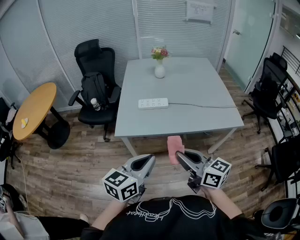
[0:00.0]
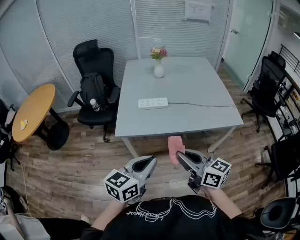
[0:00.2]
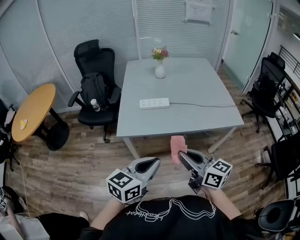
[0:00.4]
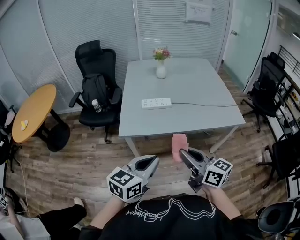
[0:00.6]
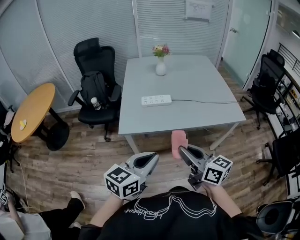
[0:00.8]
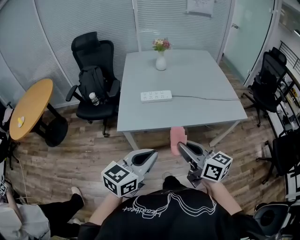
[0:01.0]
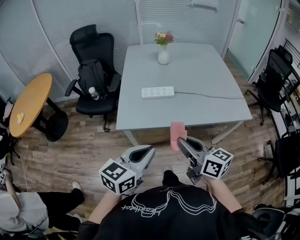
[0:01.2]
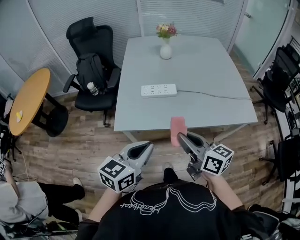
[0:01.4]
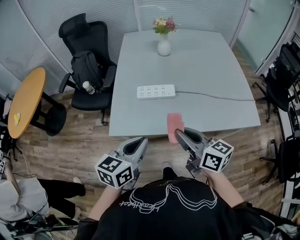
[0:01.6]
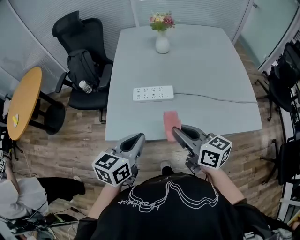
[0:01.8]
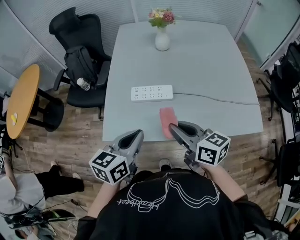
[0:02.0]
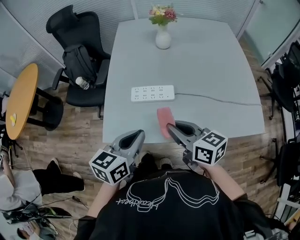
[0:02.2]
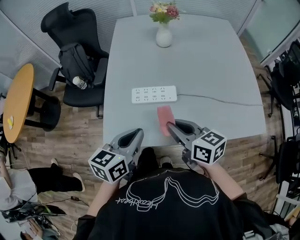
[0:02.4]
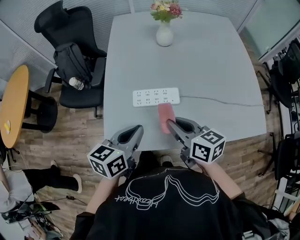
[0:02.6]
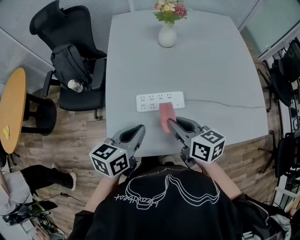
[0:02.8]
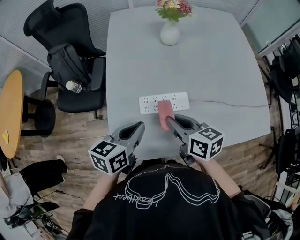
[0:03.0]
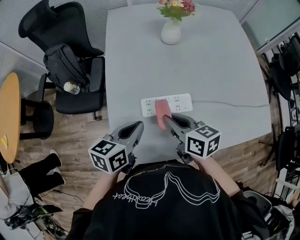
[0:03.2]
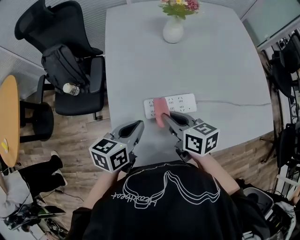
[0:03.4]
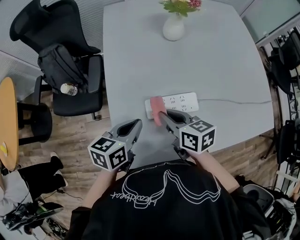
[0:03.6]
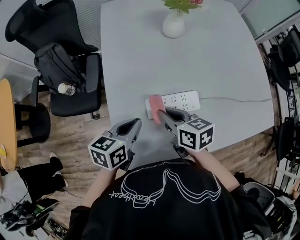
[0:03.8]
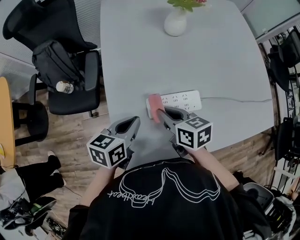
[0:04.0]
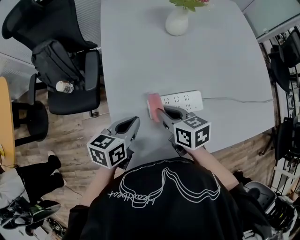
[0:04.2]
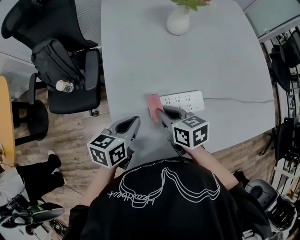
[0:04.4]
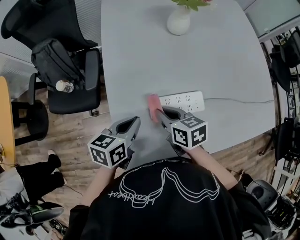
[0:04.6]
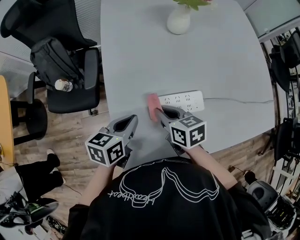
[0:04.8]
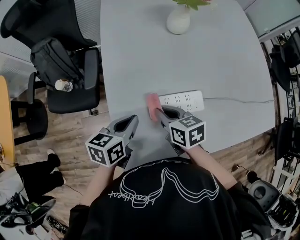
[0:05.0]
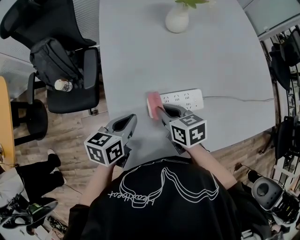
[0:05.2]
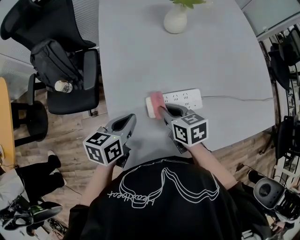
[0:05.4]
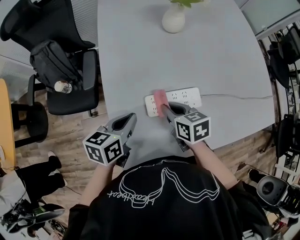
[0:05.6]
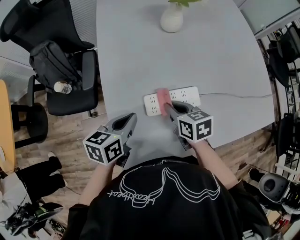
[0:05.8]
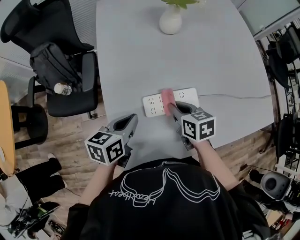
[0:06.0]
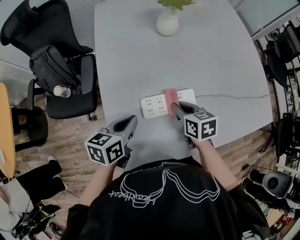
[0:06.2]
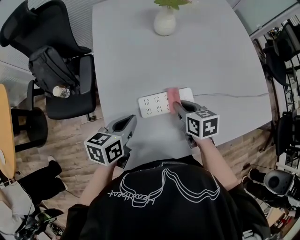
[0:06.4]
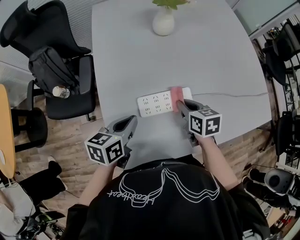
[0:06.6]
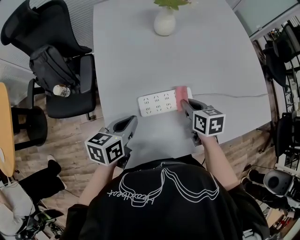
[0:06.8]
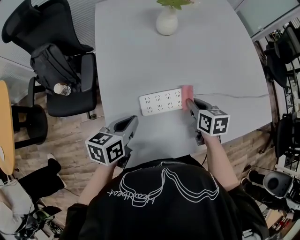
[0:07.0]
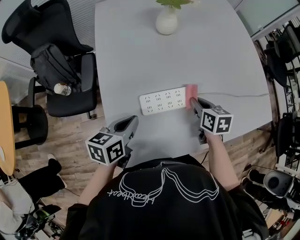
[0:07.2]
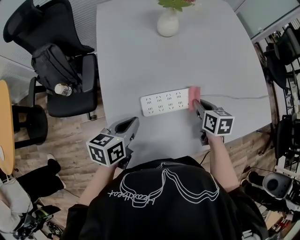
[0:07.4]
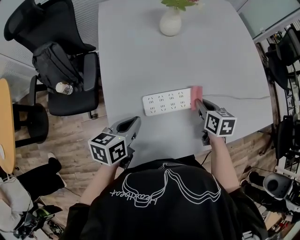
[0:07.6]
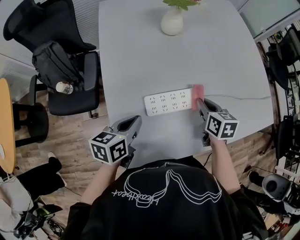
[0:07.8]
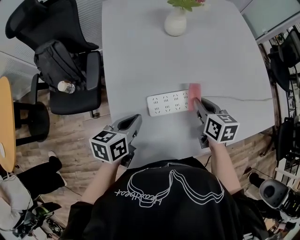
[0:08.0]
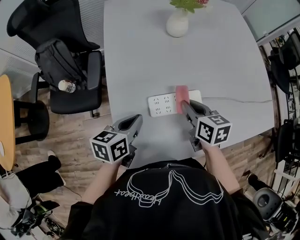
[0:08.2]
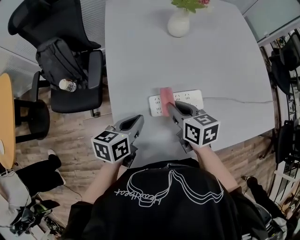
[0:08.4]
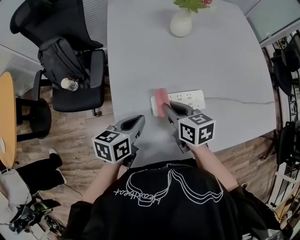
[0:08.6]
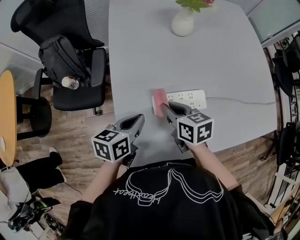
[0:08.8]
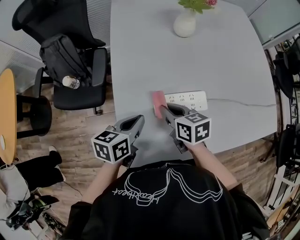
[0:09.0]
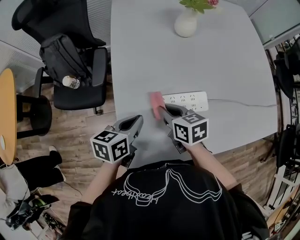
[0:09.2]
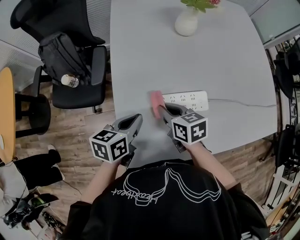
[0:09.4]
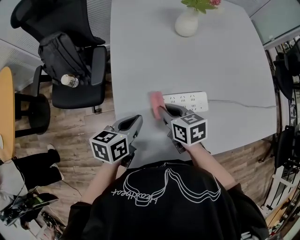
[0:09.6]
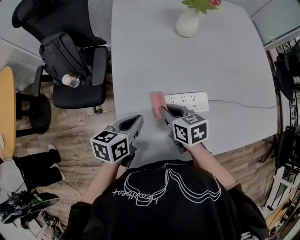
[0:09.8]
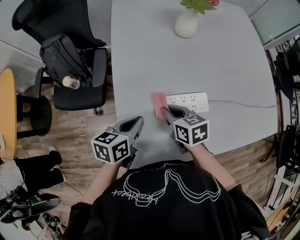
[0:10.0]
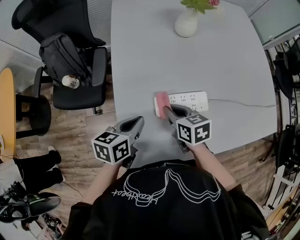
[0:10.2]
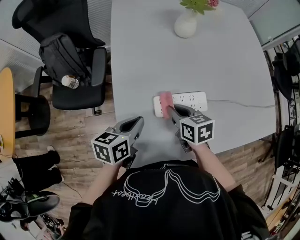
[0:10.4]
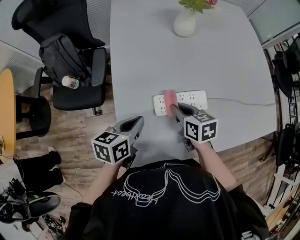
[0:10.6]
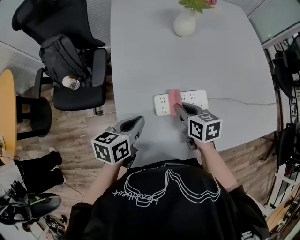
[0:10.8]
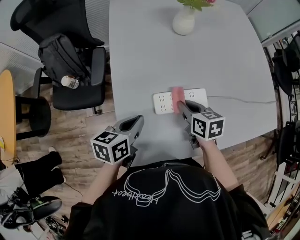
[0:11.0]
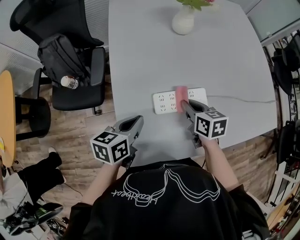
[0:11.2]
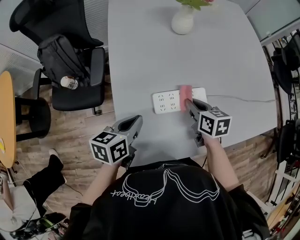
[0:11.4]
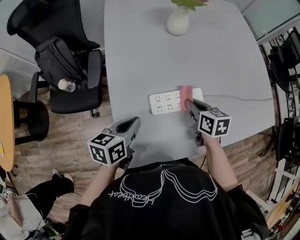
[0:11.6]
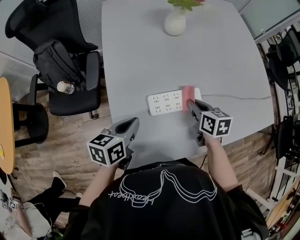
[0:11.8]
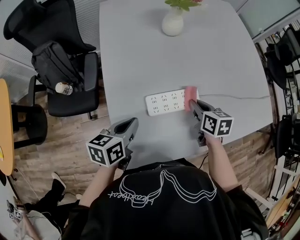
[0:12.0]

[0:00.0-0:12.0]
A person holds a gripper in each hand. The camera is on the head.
0:00.0 to 0:01.6: The right gripper moves forward, some 20 cm; the left gripper moves forward and downward, roughly 20 cm.
0:01.6 to 0:03.0: The two grippers go roughly 25 cm forward.
0:03.0 to 0:04.4: Both grippers move downward, to the left and forward, approximately 15 cm.
0:04.4 to 0:06.0: The right gripper travels to the right by some 10 cm.
0:06.0 to 0:07.6: The right gripper goes approximately 10 cm to the right.
0:07.6 to 0:09.0: The right gripper heads to the left, covering roughly 20 cm, and turns by approximately 20 degrees.
0:09.0 to 0:10.4: The grippers stay close to where they were, moving slightly.
0:10.4 to 0:12.0: The right gripper heads to the right, covering some 15 cm.

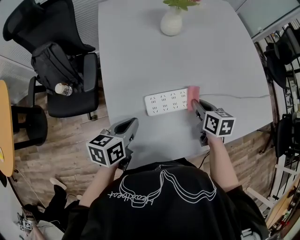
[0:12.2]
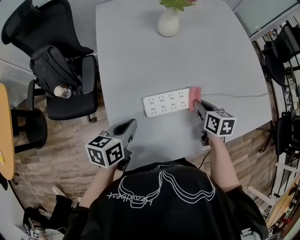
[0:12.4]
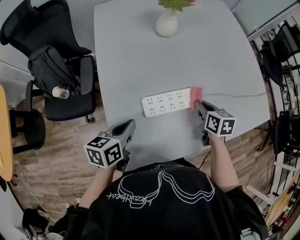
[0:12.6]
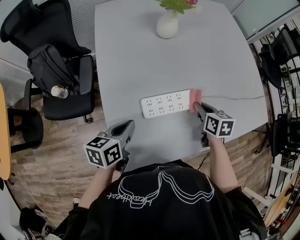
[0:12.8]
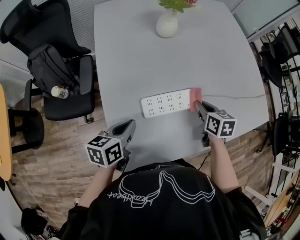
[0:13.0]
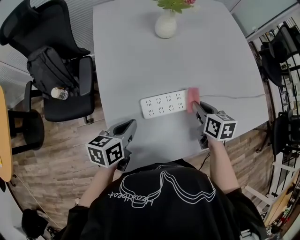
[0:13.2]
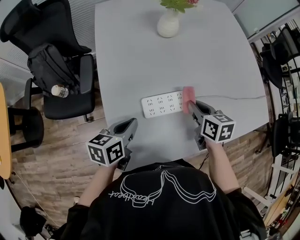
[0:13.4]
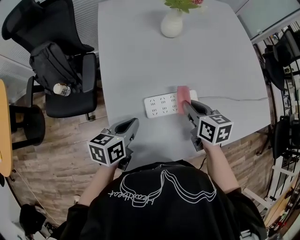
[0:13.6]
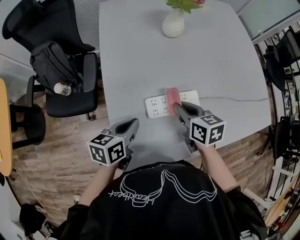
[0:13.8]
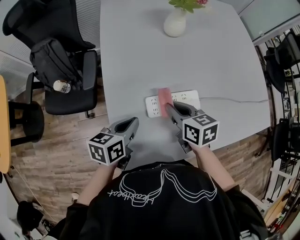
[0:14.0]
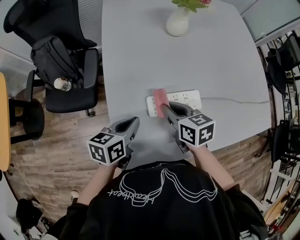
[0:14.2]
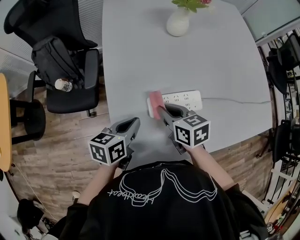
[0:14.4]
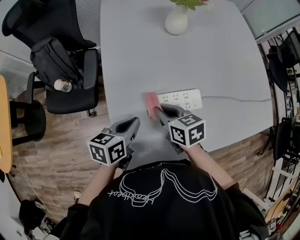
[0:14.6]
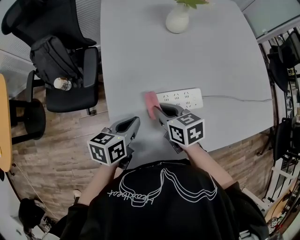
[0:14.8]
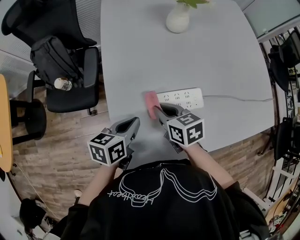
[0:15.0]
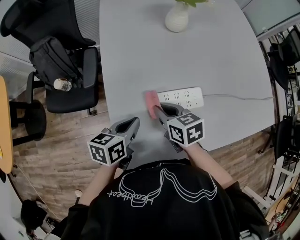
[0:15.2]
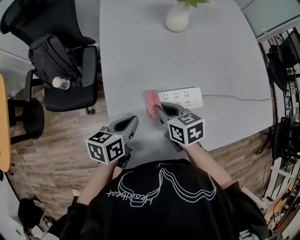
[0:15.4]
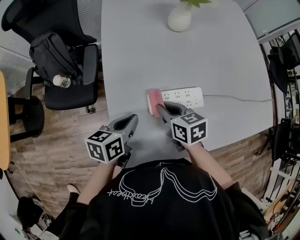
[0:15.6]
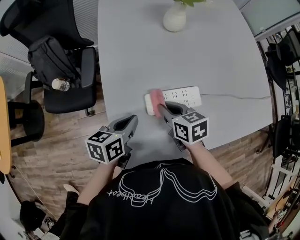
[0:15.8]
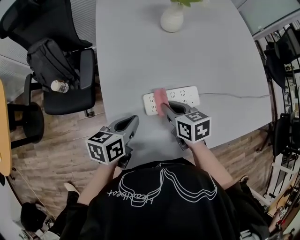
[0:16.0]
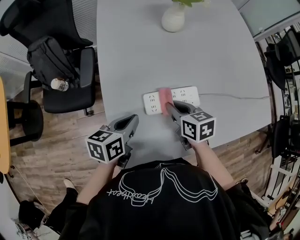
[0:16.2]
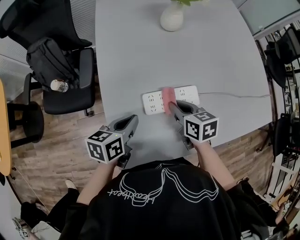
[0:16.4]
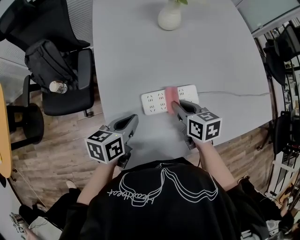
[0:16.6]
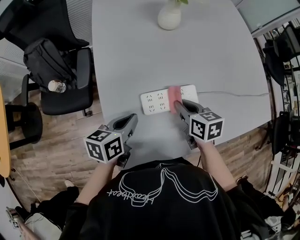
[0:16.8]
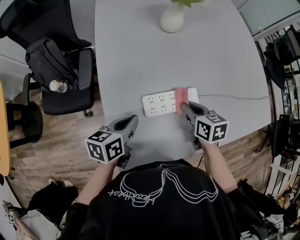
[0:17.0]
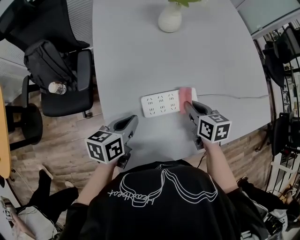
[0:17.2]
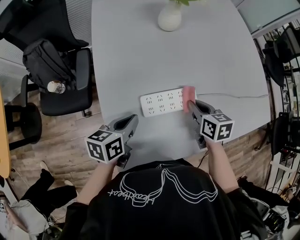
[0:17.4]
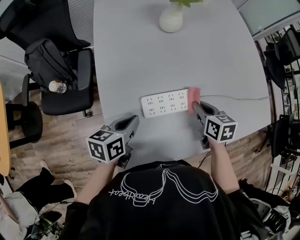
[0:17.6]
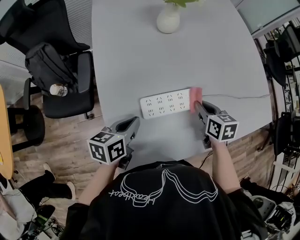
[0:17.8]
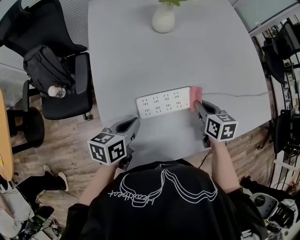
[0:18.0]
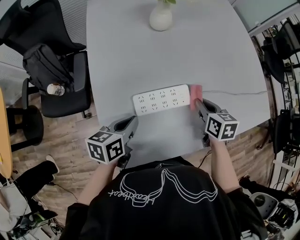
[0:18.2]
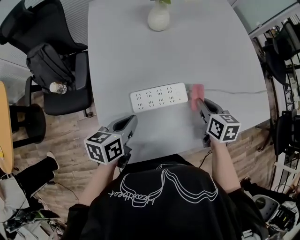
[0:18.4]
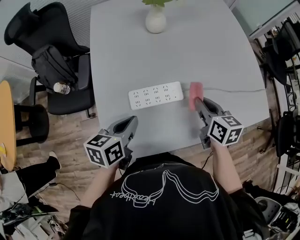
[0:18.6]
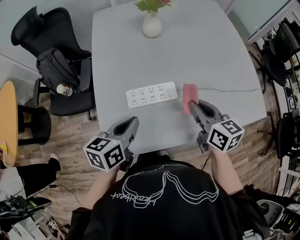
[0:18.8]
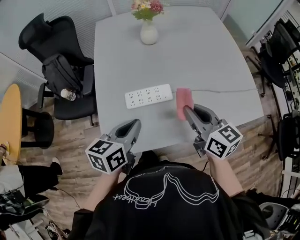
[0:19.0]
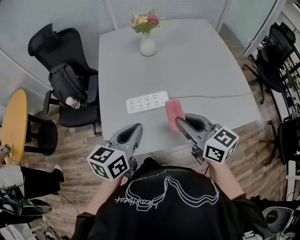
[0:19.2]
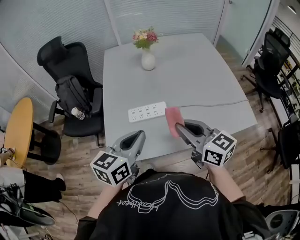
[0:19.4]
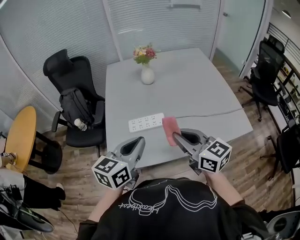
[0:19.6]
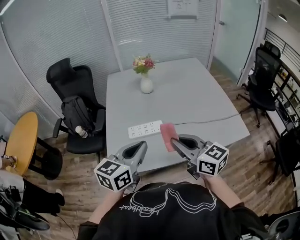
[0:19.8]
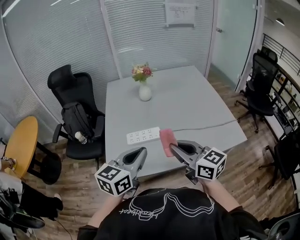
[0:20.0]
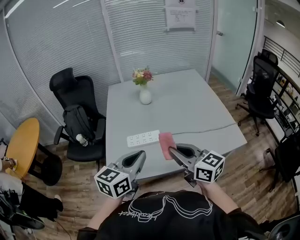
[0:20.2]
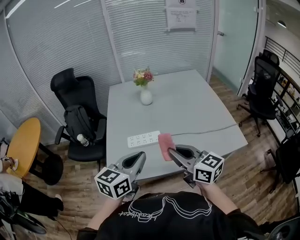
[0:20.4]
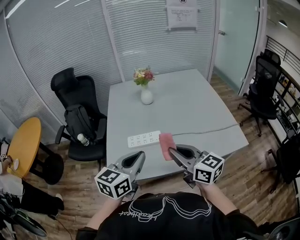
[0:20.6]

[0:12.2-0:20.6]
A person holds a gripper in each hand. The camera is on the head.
0:12.2 to 0:13.6: The right gripper travels to the left by roughly 5 cm.
0:13.6 to 0:15.0: The right gripper heads to the left, covering some 10 cm.
0:15.0 to 0:16.4: The right gripper moves to the right, approximately 10 cm.
0:16.4 to 0:17.8: The right gripper travels to the right by some 10 cm.
0:17.8 to 0:19.2: The left gripper is displaced upward, to the right and backward by some 25 cm, and rotates approximately 20 degrees. Meanwhile the right gripper shifts about 25 cm upward and backward, and tilts its fingers about 40 degrees upward.
0:19.2 to 0:20.6: The two grippers go about 10 cm backward and upward.

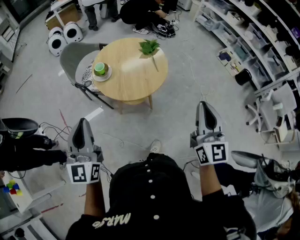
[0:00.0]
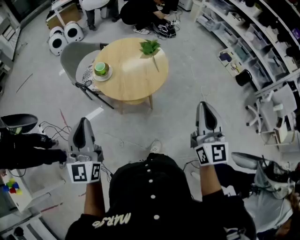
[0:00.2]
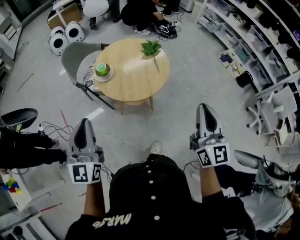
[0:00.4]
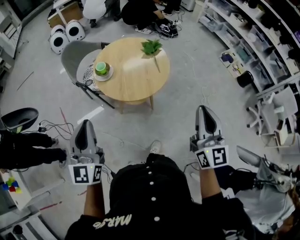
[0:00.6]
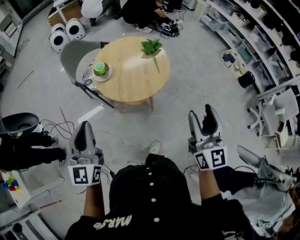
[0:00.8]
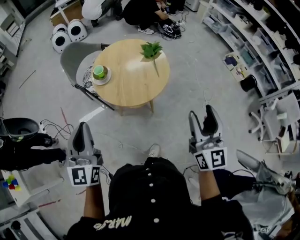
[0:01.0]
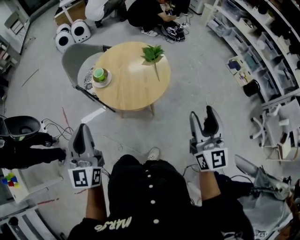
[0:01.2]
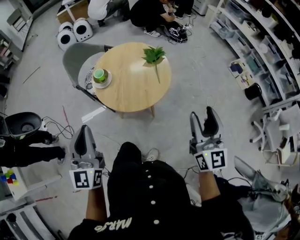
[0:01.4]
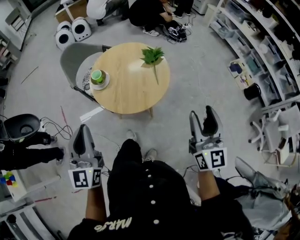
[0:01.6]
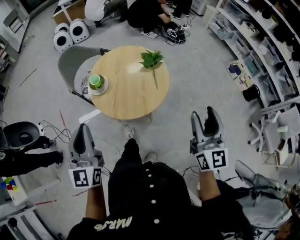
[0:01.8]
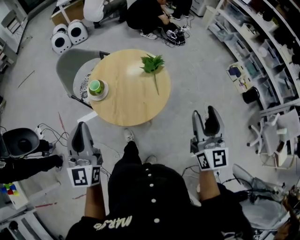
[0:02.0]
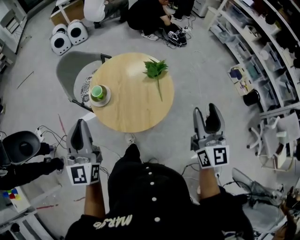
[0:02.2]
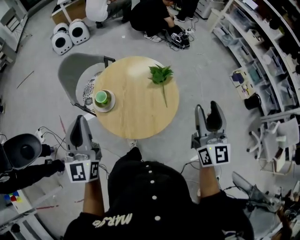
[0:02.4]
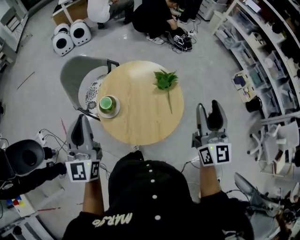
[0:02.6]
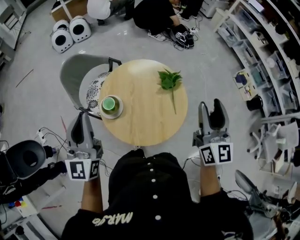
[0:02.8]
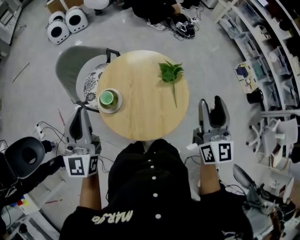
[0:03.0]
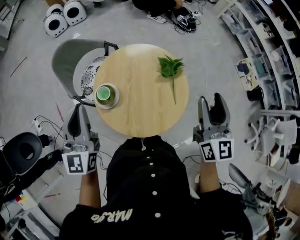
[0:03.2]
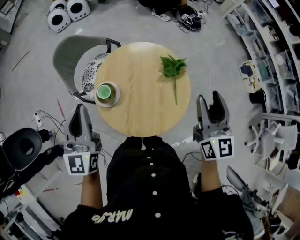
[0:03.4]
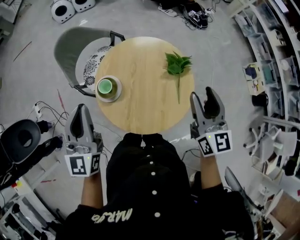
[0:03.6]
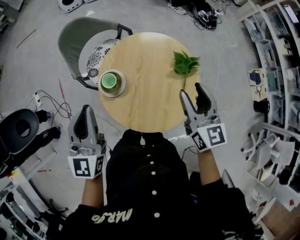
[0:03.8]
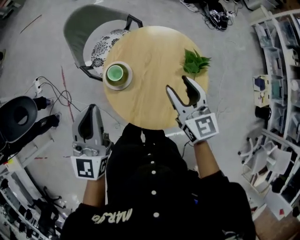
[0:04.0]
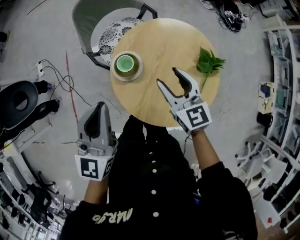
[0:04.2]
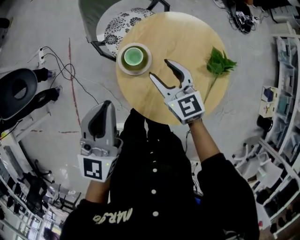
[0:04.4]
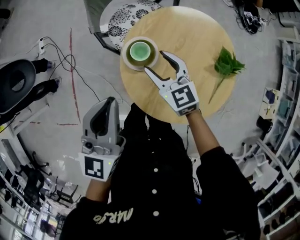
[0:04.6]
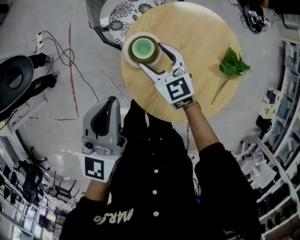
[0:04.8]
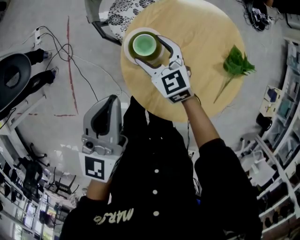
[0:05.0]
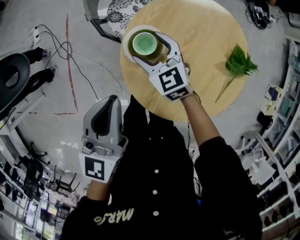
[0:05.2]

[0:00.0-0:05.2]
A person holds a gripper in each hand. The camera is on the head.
0:00.0 to 0:01.8: Both grippers move forward and to the right, roughly 15 cm. The right gripper opens up.
0:01.8 to 0:03.4: The two grippers go approximately 30 cm forward.
0:03.4 to 0:05.2: The left gripper heads downward, covering some 15 cm; the right gripper shifts by approximately 60 cm, changes its angle by approximately 70 degrees, and opens up.
